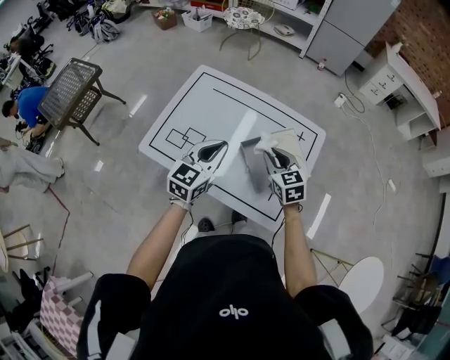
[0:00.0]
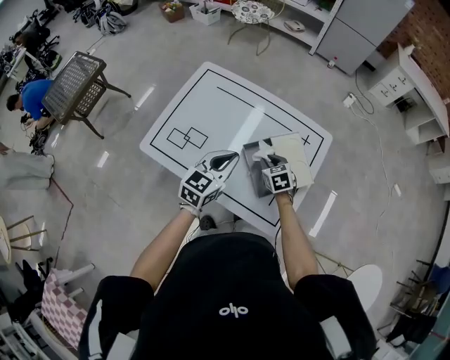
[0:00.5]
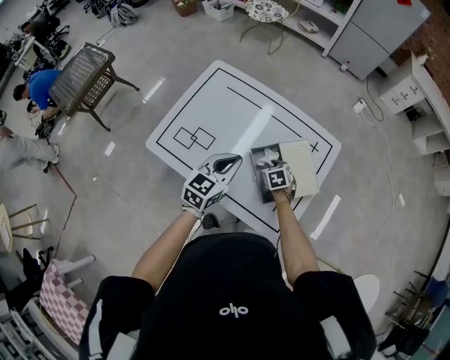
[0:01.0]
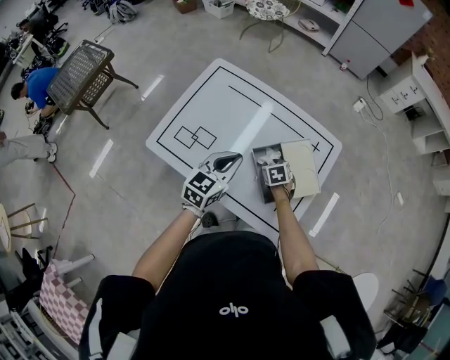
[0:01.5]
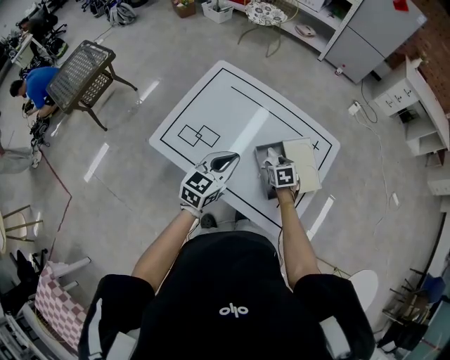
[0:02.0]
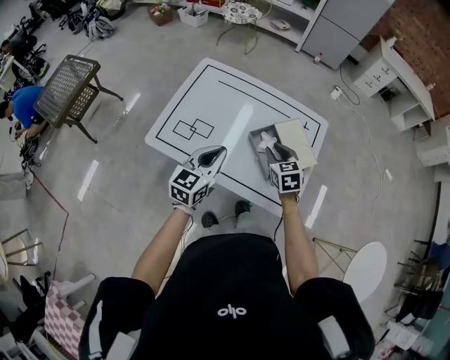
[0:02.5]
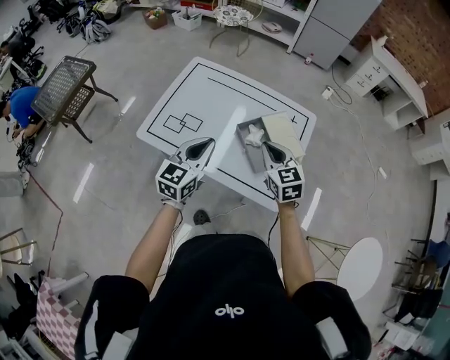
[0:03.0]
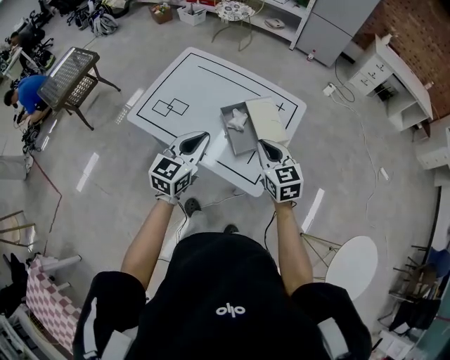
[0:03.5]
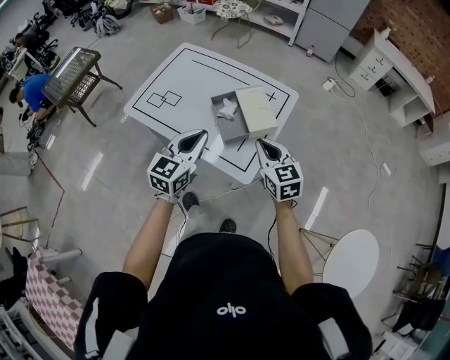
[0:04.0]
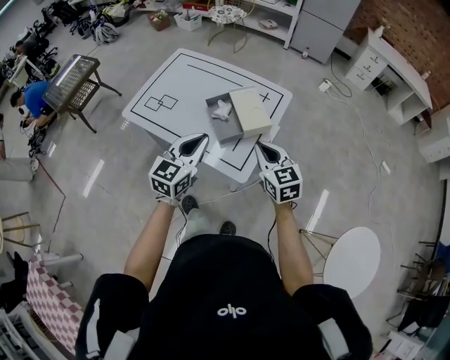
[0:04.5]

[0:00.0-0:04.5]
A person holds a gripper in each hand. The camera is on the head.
0:00.0 to 0:02.0: The left gripper heads downward, covering roughly 5 cm. Meanwhile the right gripper goes roughly 15 cm downward, changes its angle by approximately 30 degrees, and opens up.
0:02.0 to 0:04.5: The right gripper goes about 40 cm backward, upward and to the right, points its fingers some 40 degrees further upward, and closes, while the left gripper is displaced backward and to the right by some 30 cm.

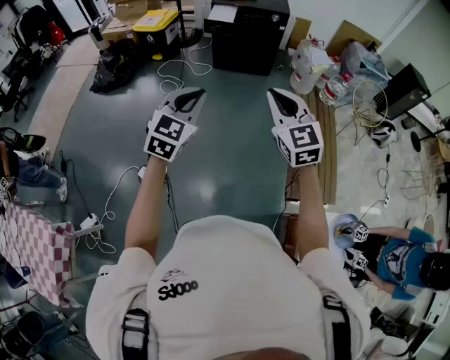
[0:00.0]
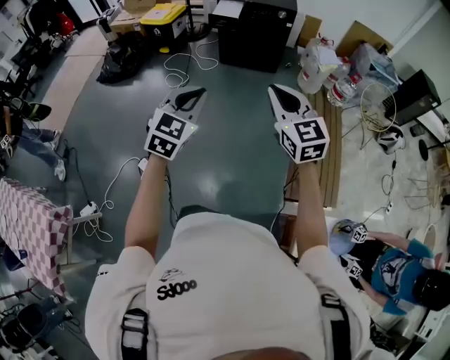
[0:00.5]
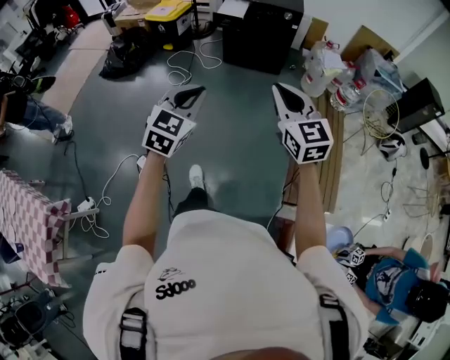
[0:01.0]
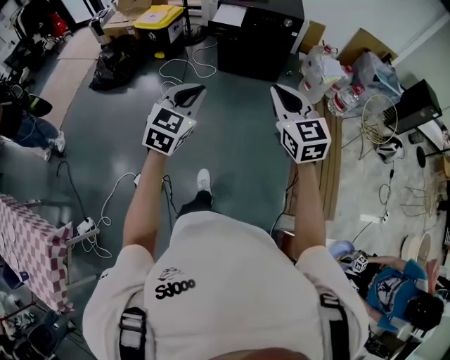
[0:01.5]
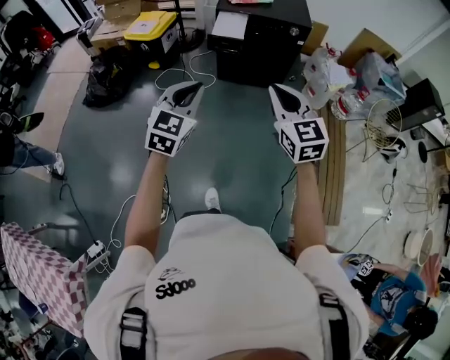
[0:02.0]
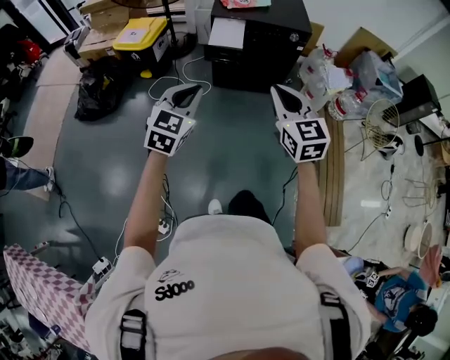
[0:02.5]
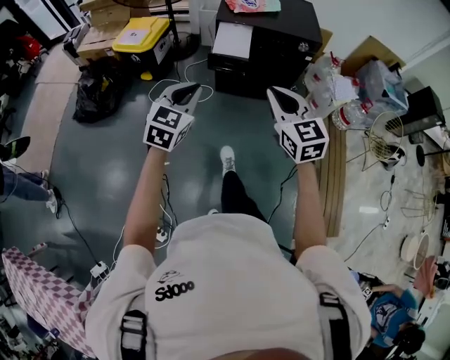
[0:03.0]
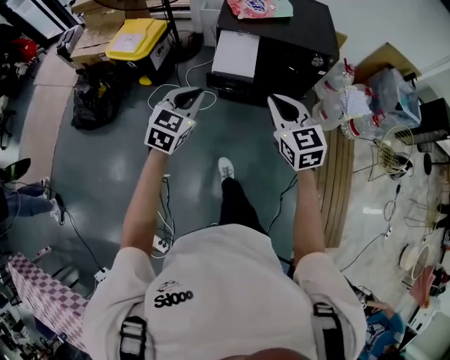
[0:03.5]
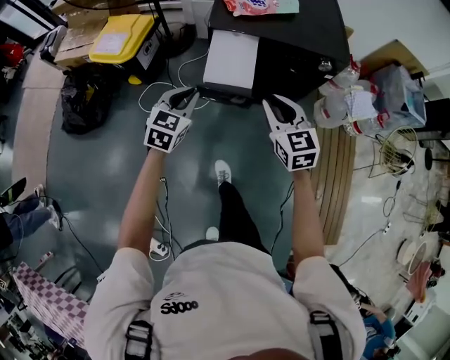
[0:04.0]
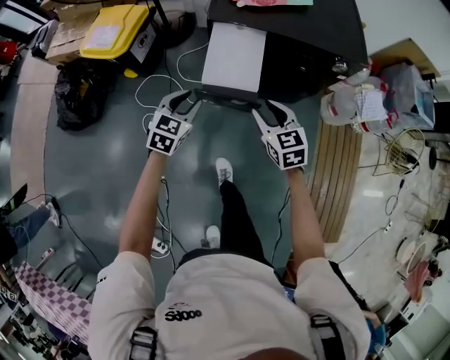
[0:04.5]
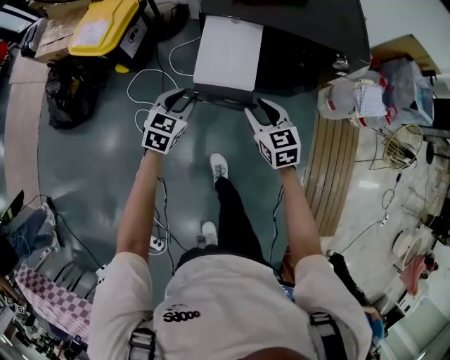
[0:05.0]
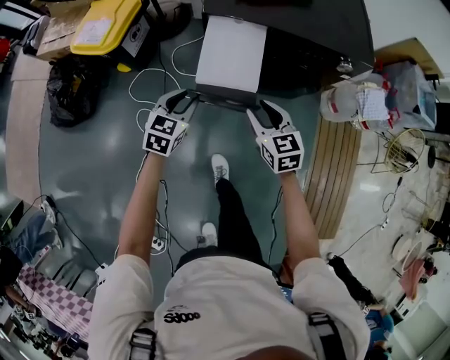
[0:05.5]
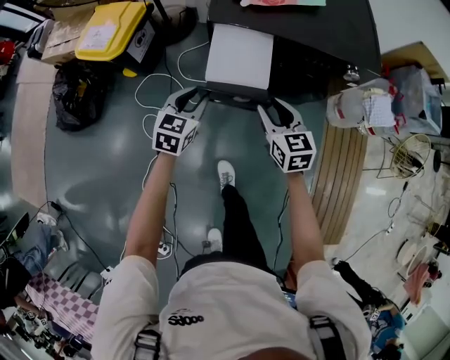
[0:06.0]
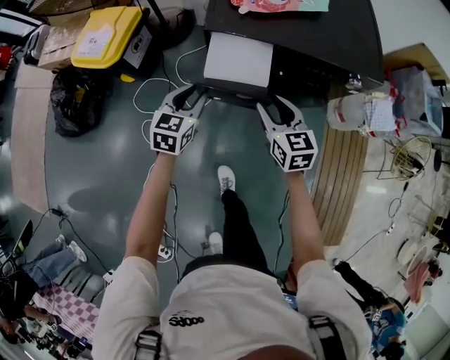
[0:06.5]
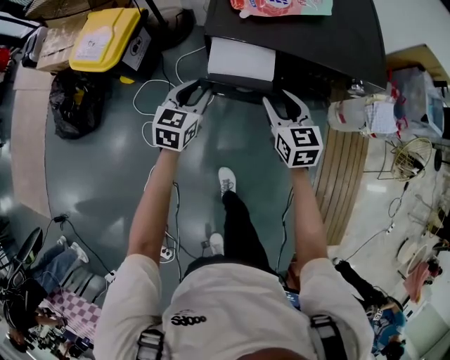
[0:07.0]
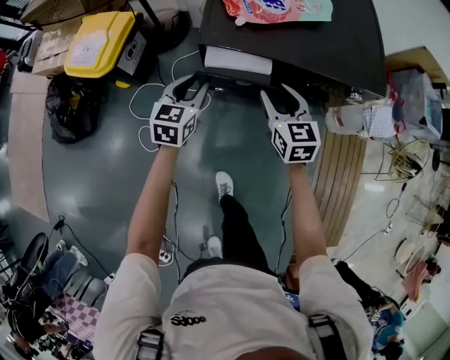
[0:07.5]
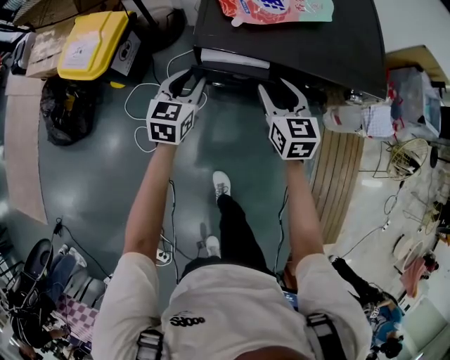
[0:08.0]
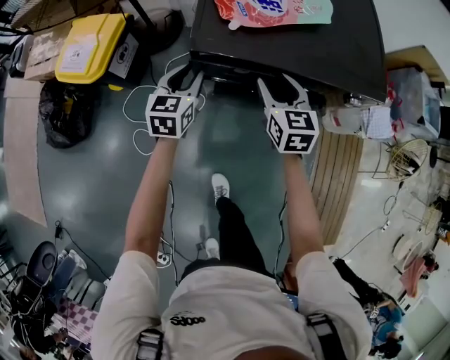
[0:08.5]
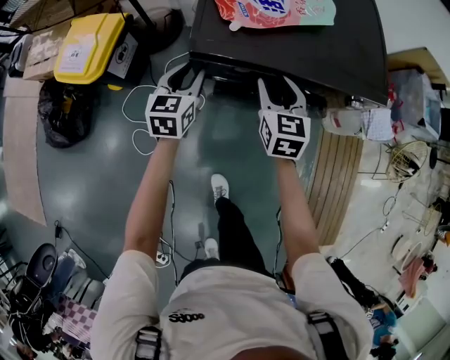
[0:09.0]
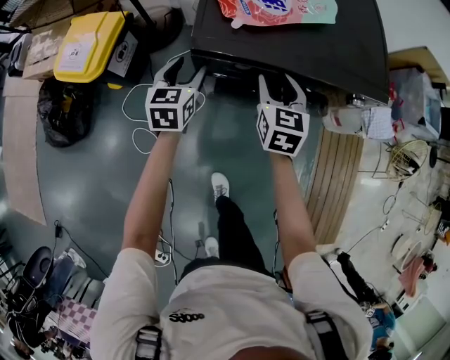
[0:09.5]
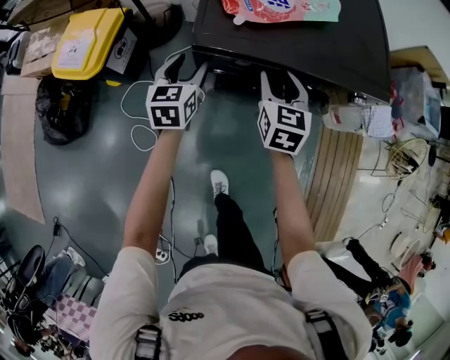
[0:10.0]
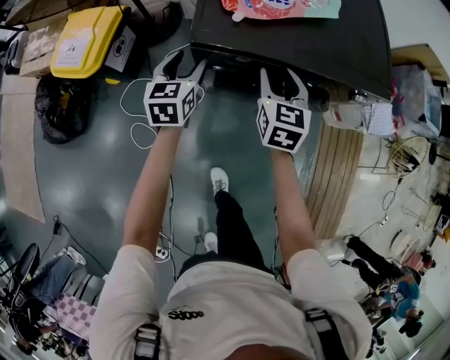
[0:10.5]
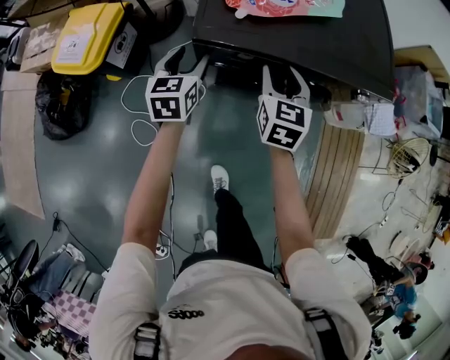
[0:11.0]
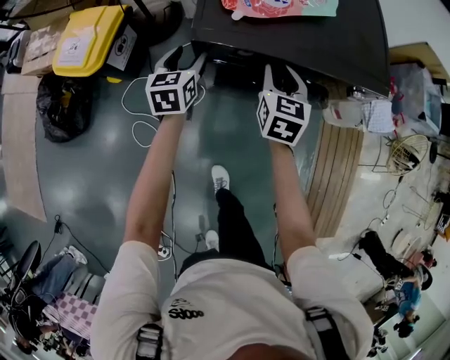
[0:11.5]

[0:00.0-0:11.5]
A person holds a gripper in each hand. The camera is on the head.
0:00.0 to 0:02.0: Both grippers travel together forward, roughly 35 cm.
0:02.0 to 0:04.0: The two grippers travel together, forward, roughly 50 cm.
0:04.0 to 0:06.0: The grippers both shift downward and forward by some 15 cm. The right gripper opens, while the left gripper opens up.
0:06.0 to 0:07.5: Both grippers move forward, roughly 15 cm.
0:07.5 to 0:09.5: Both grippers travel together forward, some 5 cm. The left gripper opens.
0:09.5 to 0:11.5: The grippers move only a little.

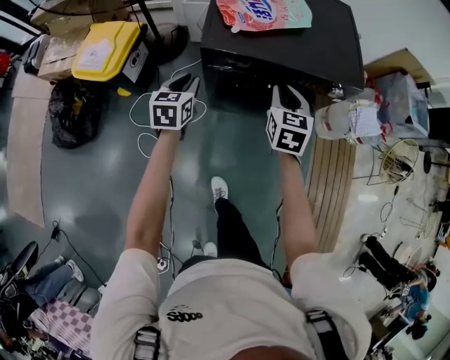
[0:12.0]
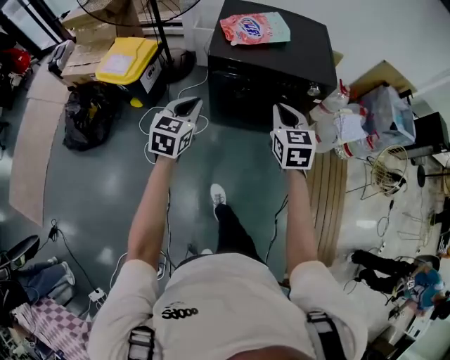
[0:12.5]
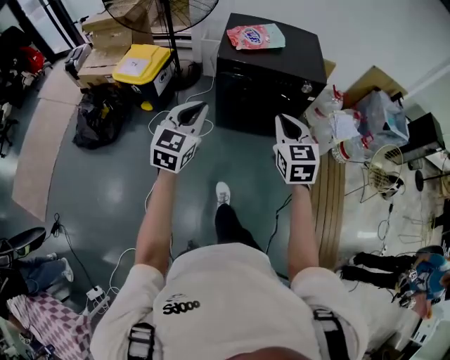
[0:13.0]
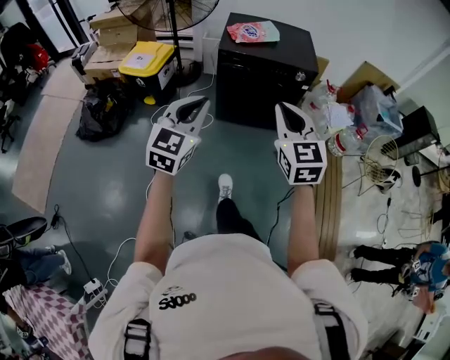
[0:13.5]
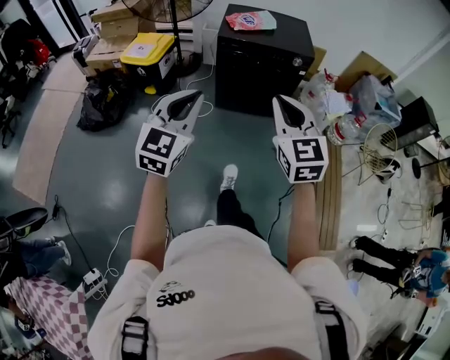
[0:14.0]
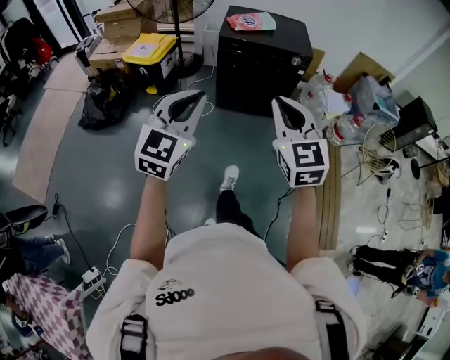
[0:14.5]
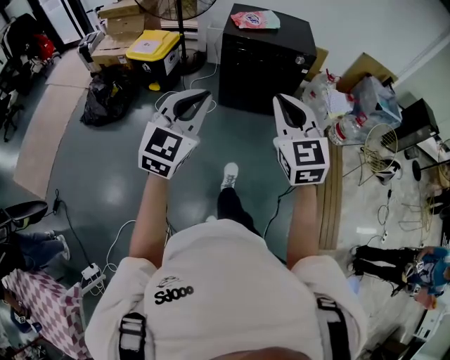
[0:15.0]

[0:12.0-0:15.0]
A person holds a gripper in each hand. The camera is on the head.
0:12.0 to 0:13.5: The pair of grippers is taken backward, some 50 cm. Both grippers travel together upward, about 30 cm. The right gripper turns by about 30 degrees; the left gripper swivels roughly 40 degrees.
0:13.5 to 0:15.0: The two grippers go about 15 cm backward.

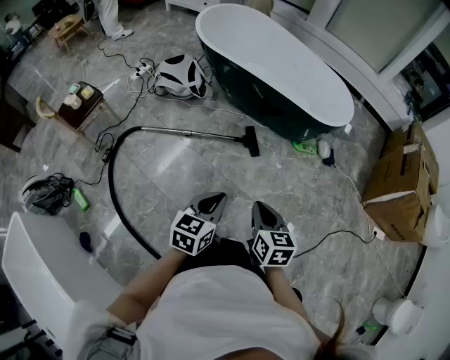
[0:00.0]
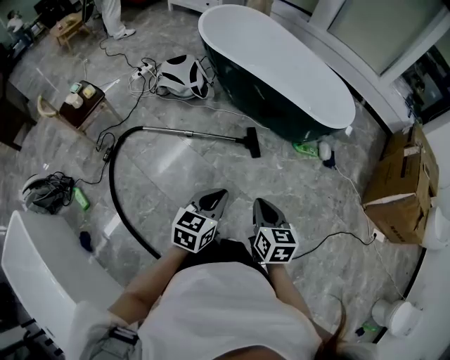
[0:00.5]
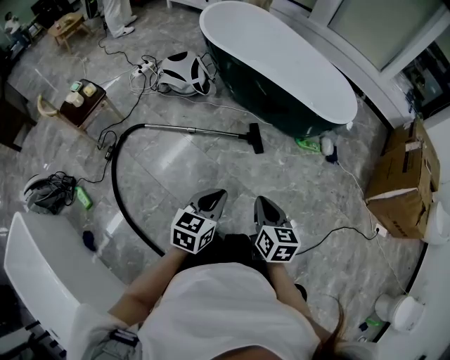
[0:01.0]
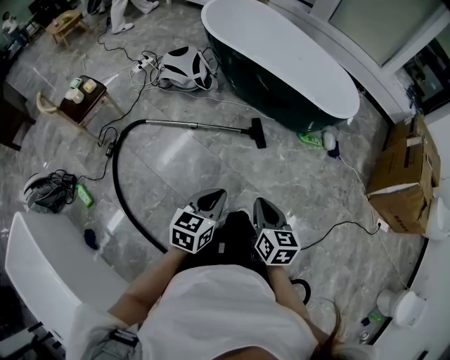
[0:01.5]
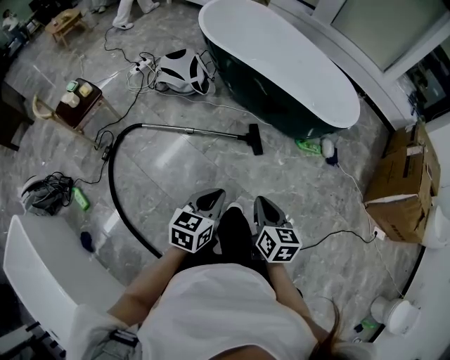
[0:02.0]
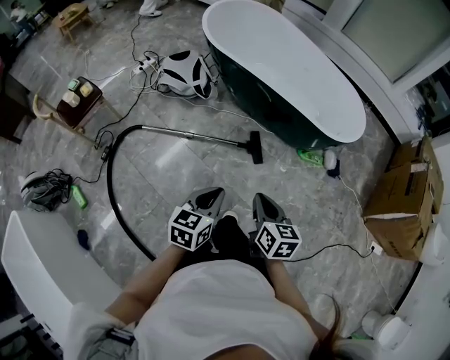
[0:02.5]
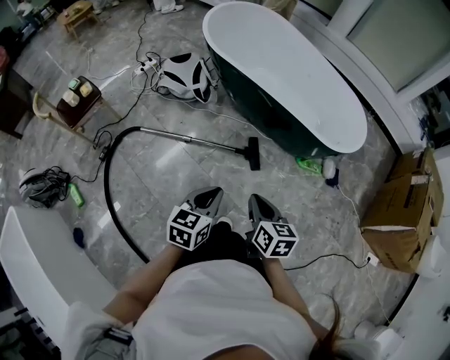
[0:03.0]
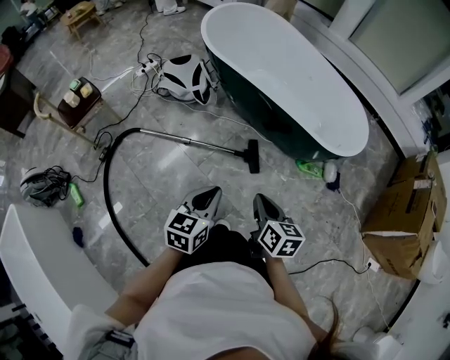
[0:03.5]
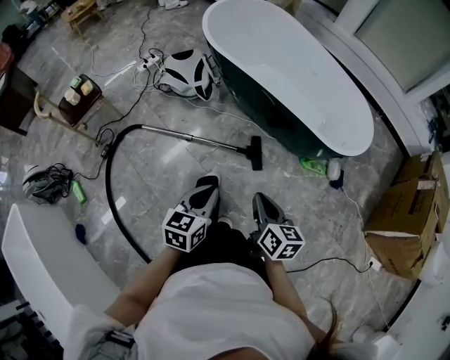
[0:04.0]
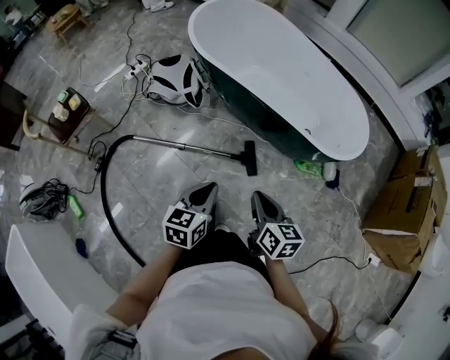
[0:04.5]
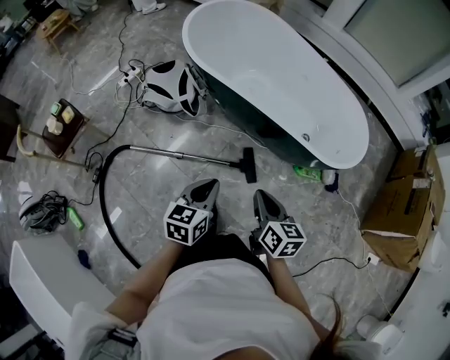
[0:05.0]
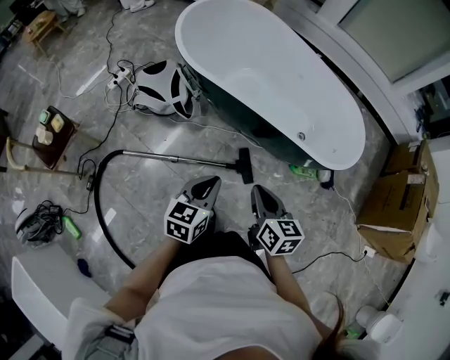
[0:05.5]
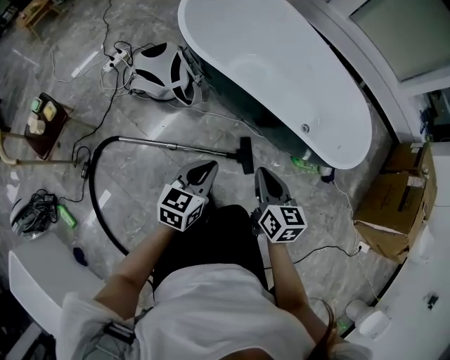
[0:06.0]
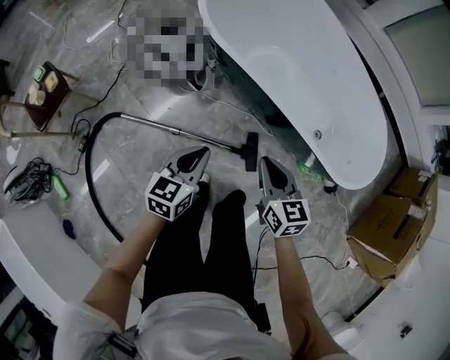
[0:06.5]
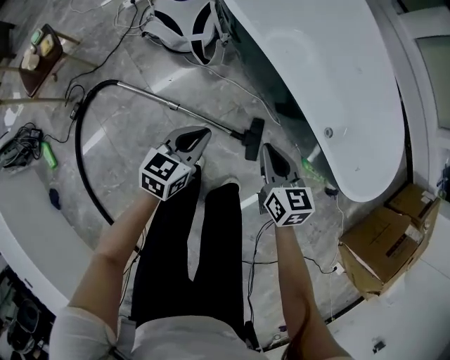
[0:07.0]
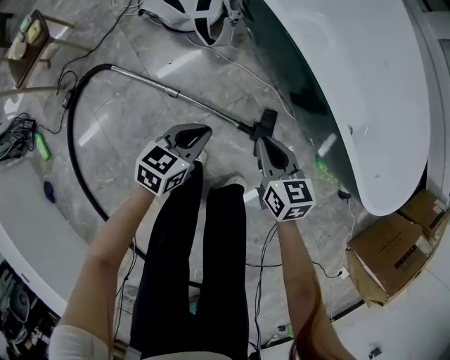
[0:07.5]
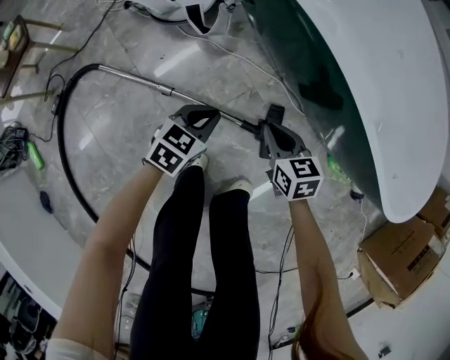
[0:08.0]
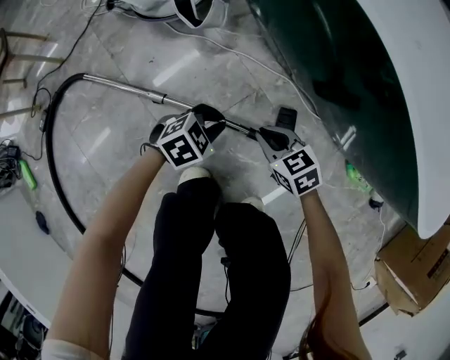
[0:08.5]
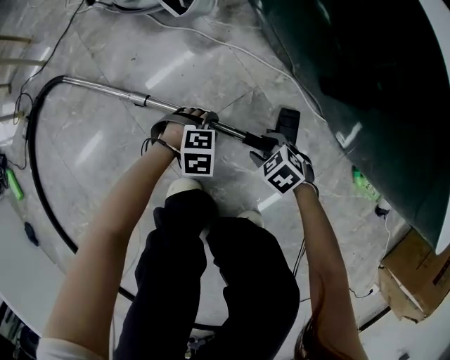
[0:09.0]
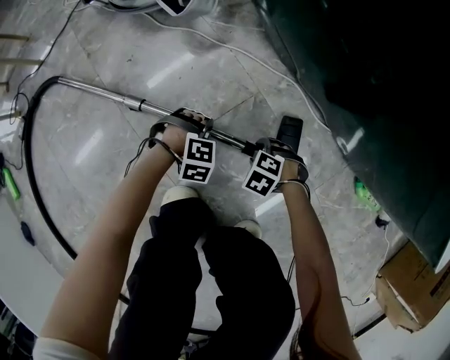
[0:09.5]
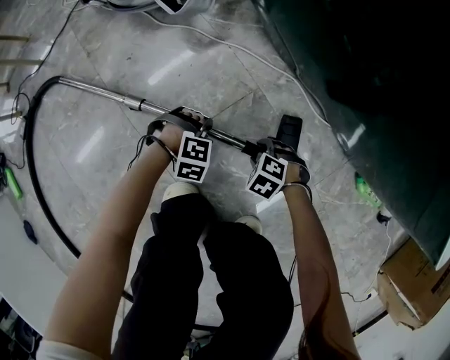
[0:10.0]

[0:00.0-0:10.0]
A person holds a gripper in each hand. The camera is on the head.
0:00.0 to 0:02.0: The left gripper moves roughly 5 cm.
0:02.0 to 0:04.0: The left gripper goes some 15 cm forward, while the right gripper is displaced forward and to the right by some 15 cm.
0:04.0 to 0:06.0: Both grippers move forward, about 25 cm.
0:06.0 to 0:08.0: The two grippers go approximately 40 cm downward. The right gripper rotates roughly 30 degrees.
0:08.0 to 0:10.0: The two grippers go approximately 35 cm downward. The right gripper points its fingers roughly 40 degrees further downward, and opens its fingers; the left gripper rolls clockwise, seen from behind, by approximately 60 degrees, and opens up.
